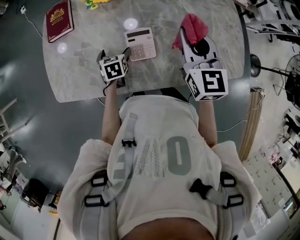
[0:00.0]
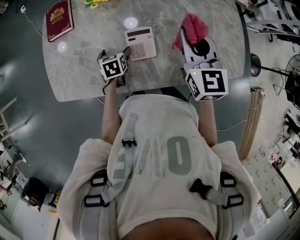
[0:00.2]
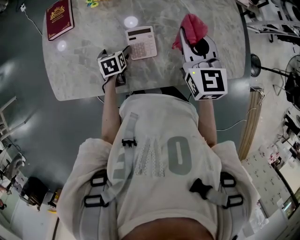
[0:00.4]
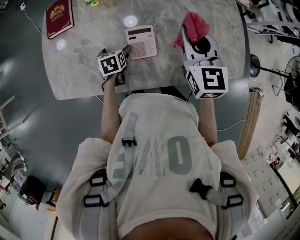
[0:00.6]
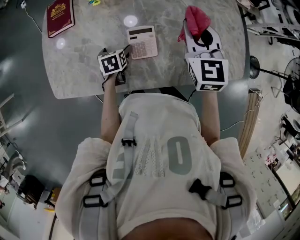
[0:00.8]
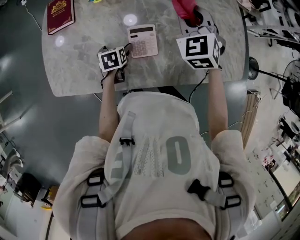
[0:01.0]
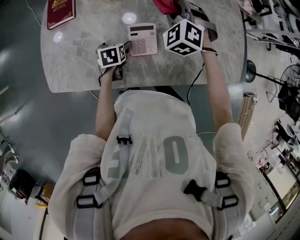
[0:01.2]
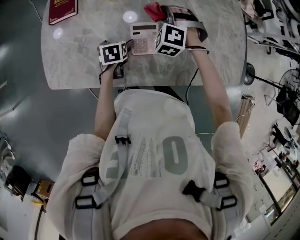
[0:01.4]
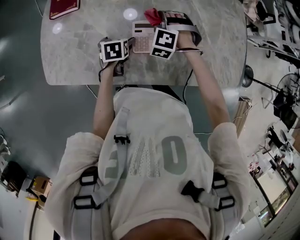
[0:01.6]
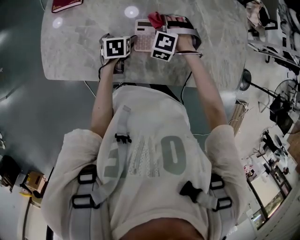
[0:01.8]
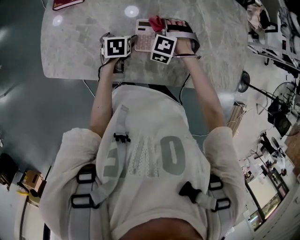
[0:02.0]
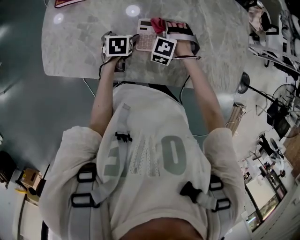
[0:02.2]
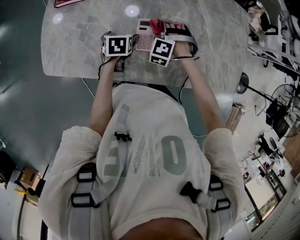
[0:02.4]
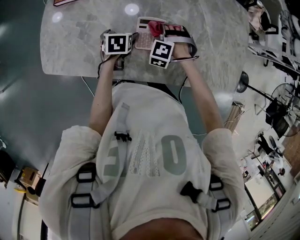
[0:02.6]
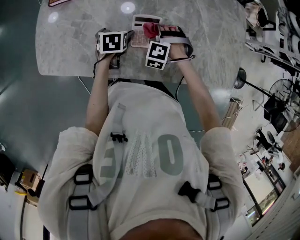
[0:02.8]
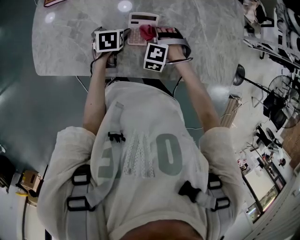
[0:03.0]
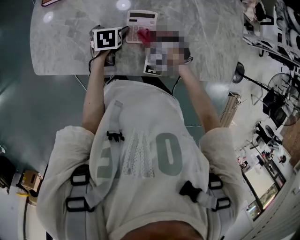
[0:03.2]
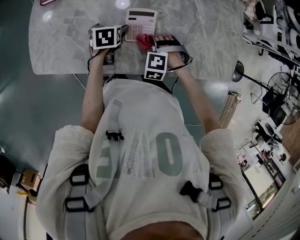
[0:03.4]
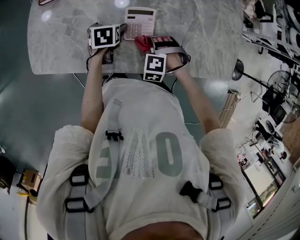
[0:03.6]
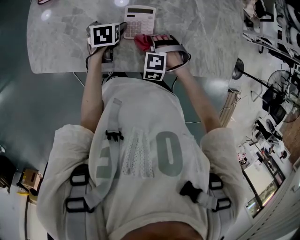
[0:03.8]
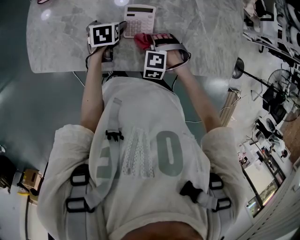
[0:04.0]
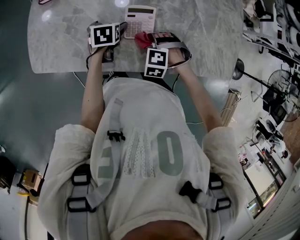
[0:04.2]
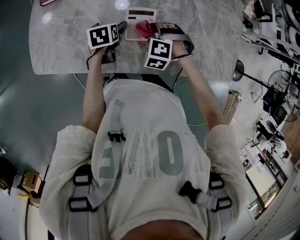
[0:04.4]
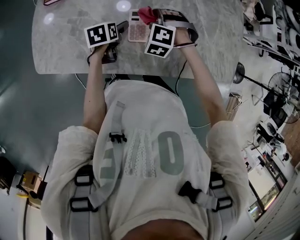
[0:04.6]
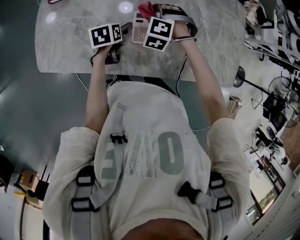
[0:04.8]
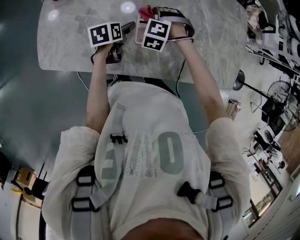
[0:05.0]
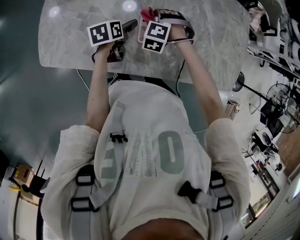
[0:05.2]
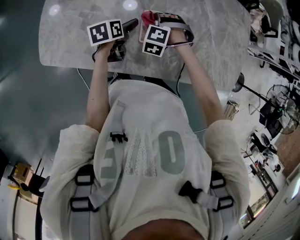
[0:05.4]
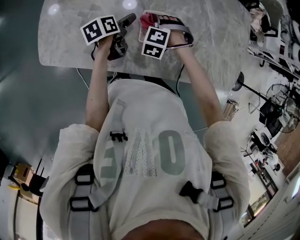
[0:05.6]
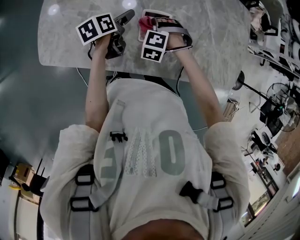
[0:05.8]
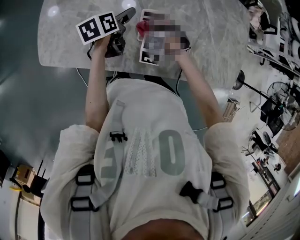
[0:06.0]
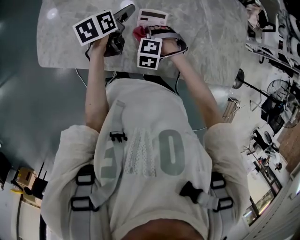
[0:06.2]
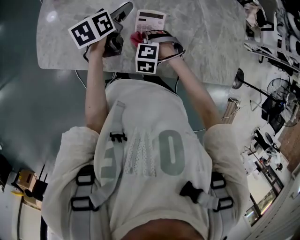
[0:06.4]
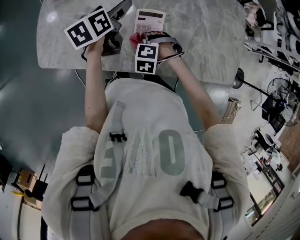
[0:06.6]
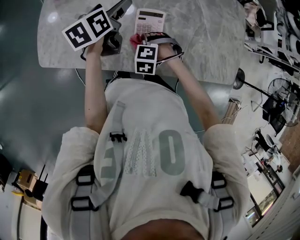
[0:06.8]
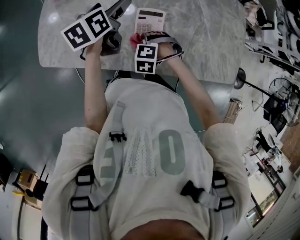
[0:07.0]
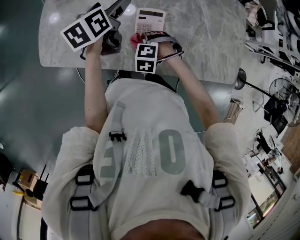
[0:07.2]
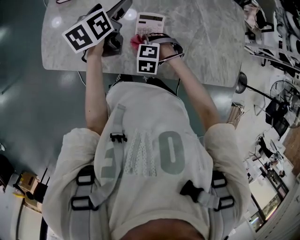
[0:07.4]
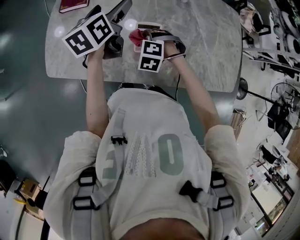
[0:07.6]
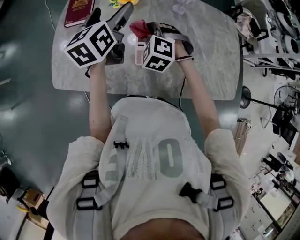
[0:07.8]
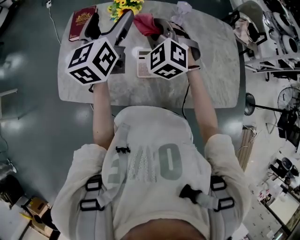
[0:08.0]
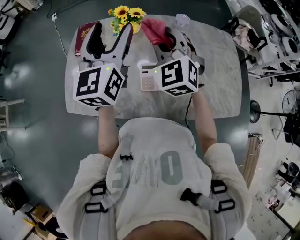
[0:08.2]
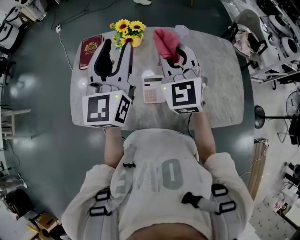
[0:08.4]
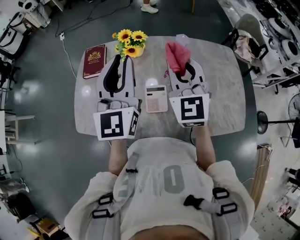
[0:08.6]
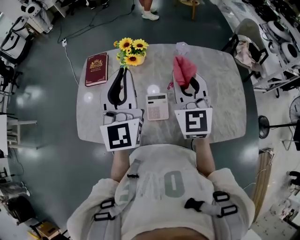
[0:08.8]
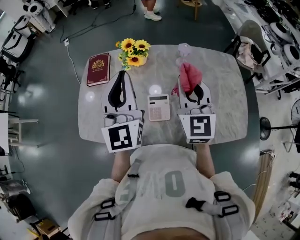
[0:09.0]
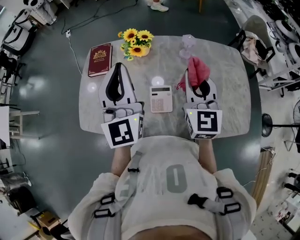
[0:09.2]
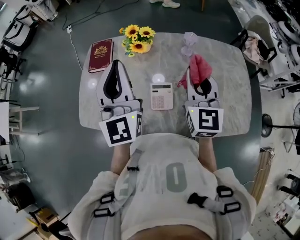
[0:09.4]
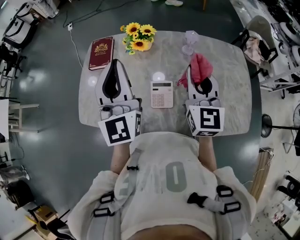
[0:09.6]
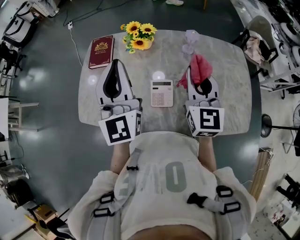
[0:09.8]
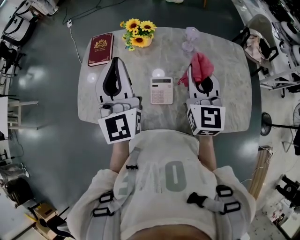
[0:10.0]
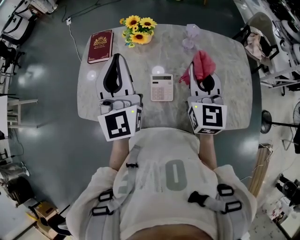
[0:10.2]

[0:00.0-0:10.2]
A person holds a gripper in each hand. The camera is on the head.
0.0 to 1.4 s: The right gripper shifts approximately 20 cm downward, to the left and forward, and rolls counterclockwise, seen from behind, by roughly 70 degrees.
1.4 to 3.0 s: The right gripper goes about 15 cm downward and backward.
3.0 to 4.4 s: The right gripper moves about 10 cm backward and comes back.
4.4 to 5.8 s: The right gripper goes approximately 5 cm to the left, while the left gripper shifts by roughly 5 cm, and changes its angle by roughly 30 degrees.
5.8 to 7.2 s: The right gripper changes place by about 10 cm; the left gripper goes some 15 cm upward, and swivels about 20 degrees.
7.2 to 8.8 s: The left gripper moves upward, about 25 cm, tips its fingers upward by some 40 degrees, and closes up; the right gripper moves upward, some 40 cm, and tilts its fingers approximately 70 degrees upward.
8.8 to 10.2 s: The right gripper shifts by roughly 5 cm.

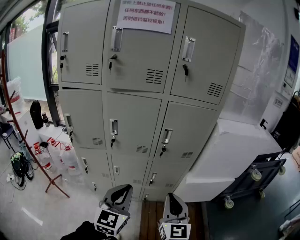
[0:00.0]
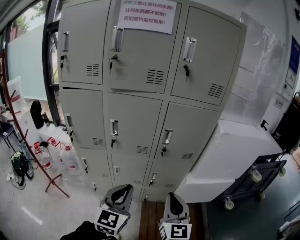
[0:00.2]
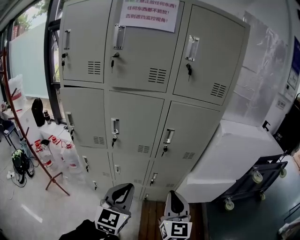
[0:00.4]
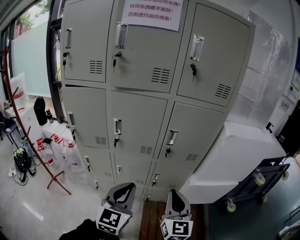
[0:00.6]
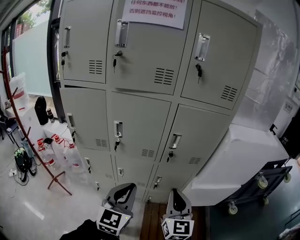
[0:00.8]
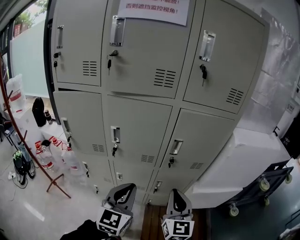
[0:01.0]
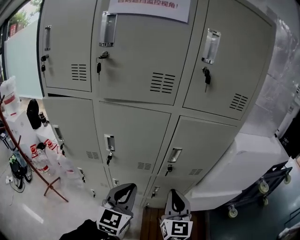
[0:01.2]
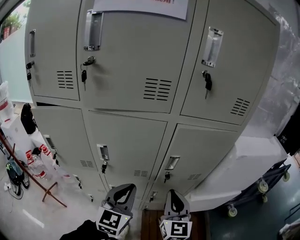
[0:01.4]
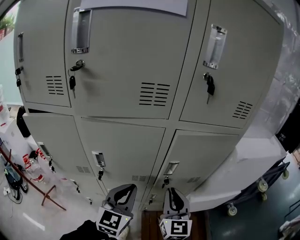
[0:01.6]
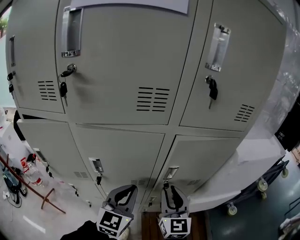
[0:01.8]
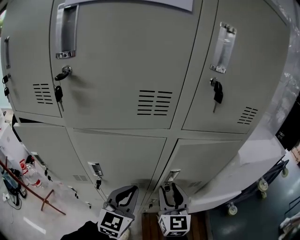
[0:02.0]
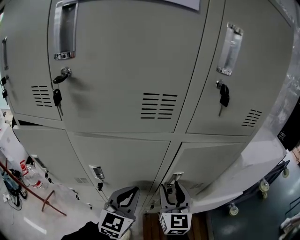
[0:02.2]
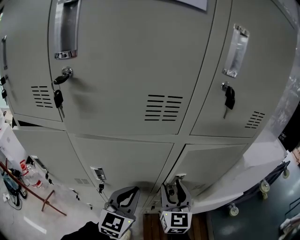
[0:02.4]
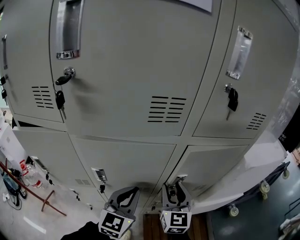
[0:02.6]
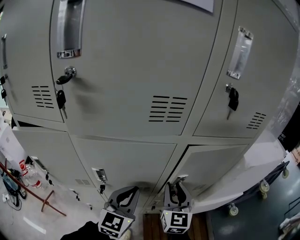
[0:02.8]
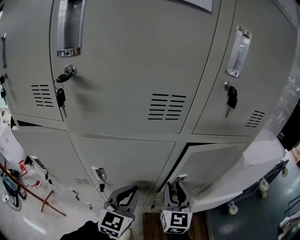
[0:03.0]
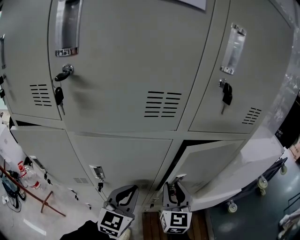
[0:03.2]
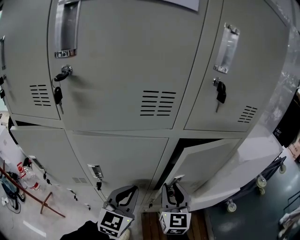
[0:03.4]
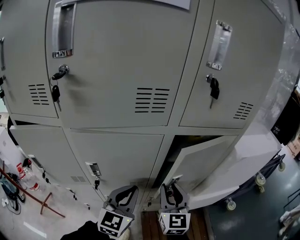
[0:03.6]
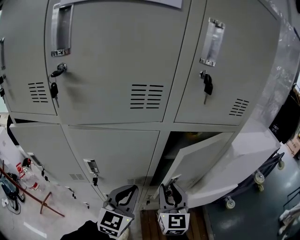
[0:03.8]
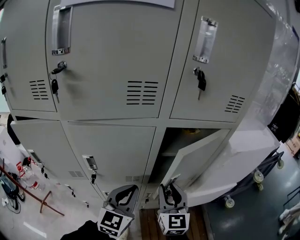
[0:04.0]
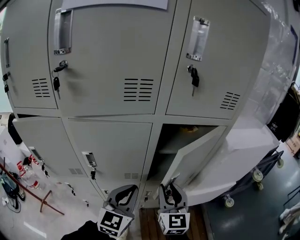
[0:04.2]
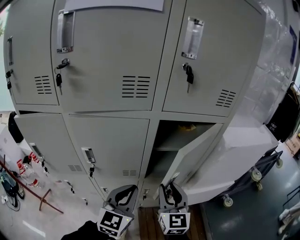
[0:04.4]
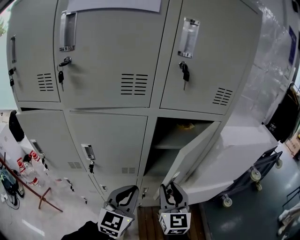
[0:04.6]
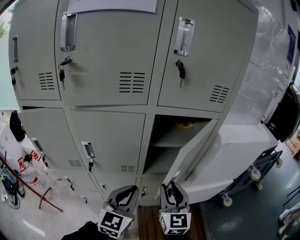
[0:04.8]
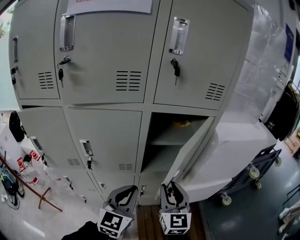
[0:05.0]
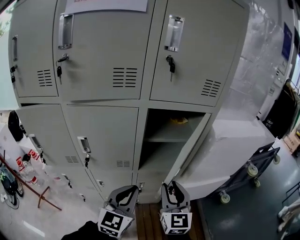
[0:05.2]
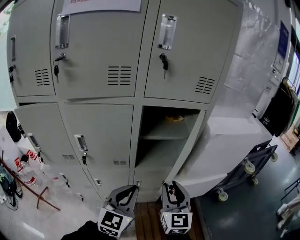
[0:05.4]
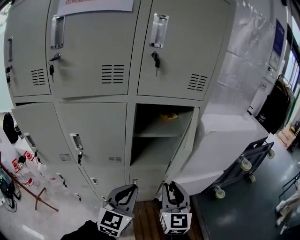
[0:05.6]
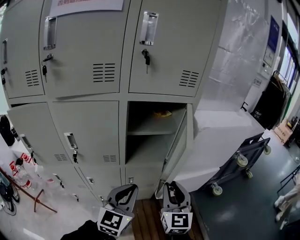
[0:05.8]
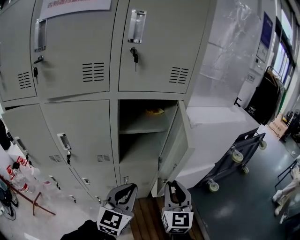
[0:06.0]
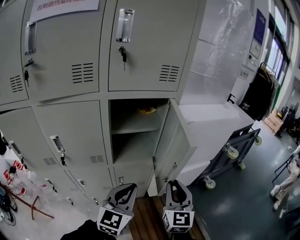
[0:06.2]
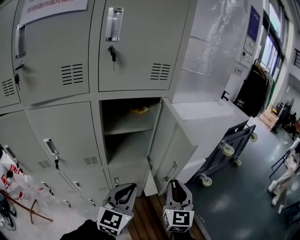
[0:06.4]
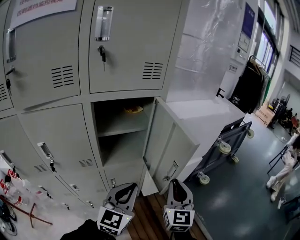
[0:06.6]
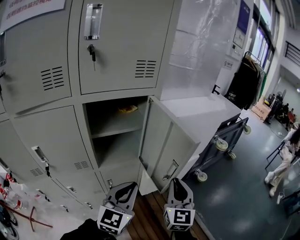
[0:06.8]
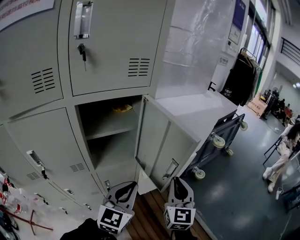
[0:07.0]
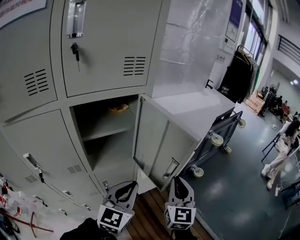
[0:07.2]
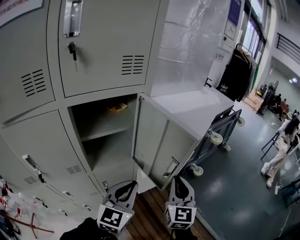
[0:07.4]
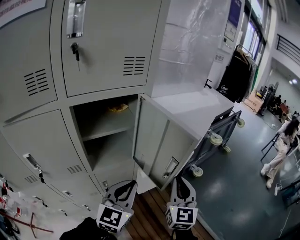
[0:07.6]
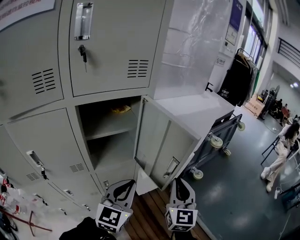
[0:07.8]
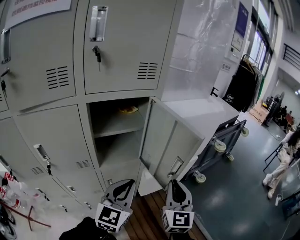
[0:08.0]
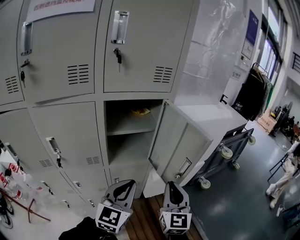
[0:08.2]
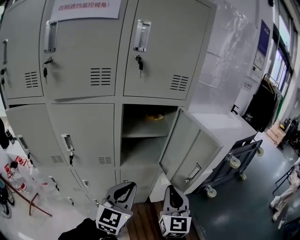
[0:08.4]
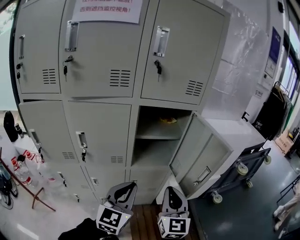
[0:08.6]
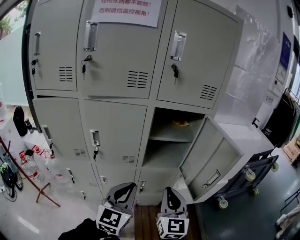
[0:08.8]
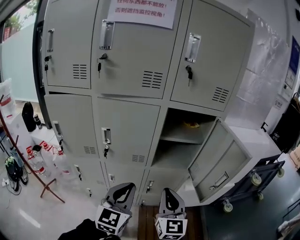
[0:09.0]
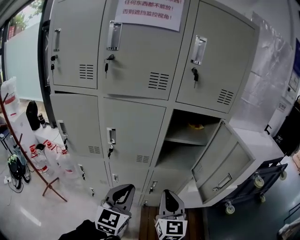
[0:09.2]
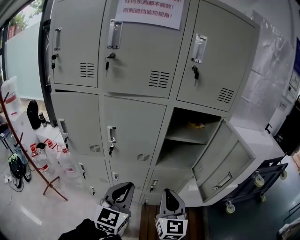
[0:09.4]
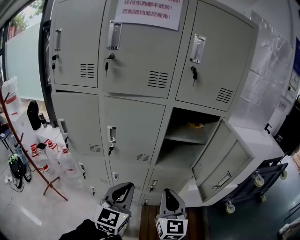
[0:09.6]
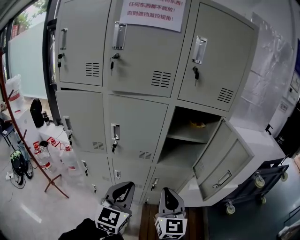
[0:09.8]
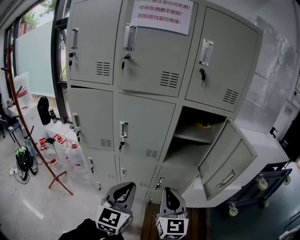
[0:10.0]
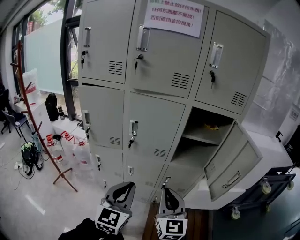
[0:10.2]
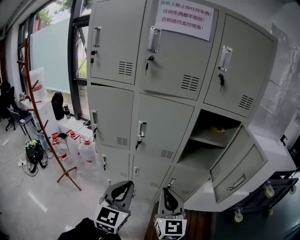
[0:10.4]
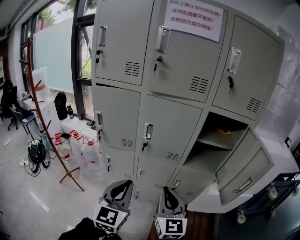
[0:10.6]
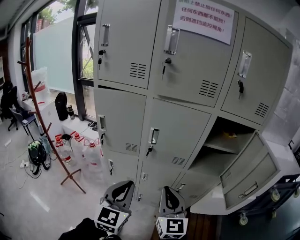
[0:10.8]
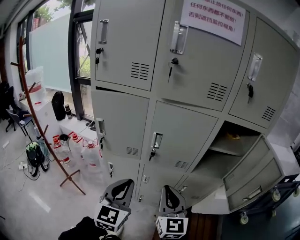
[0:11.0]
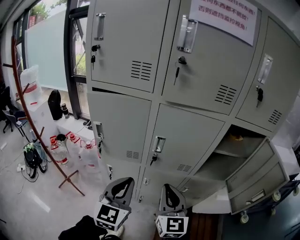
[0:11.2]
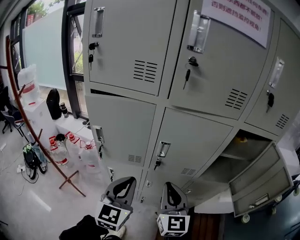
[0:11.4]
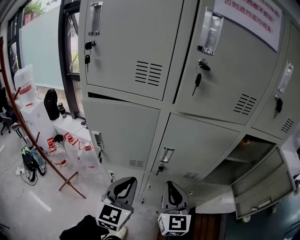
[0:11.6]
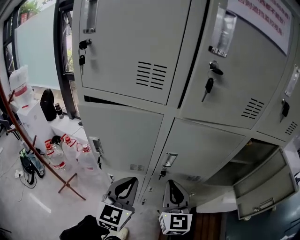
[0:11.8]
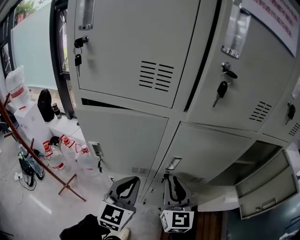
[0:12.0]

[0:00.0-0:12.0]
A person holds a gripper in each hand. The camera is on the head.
0.0 to 1.6 s: Both grippers move forward, approximately 25 cm.
1.6 to 3.0 s: The two grippers go roughly 5 cm forward.
3.0 to 4.4 s: The left gripper travels to the right by approximately 5 cm. The right gripper heads backward, covering approximately 5 cm.
4.4 to 6.0 s: The two grippers go roughly 20 cm to the right and backward.
6.0 to 7.6 s: The left gripper moves forward and to the right, roughly 10 cm. Meanwhile the right gripper shifts some 10 cm to the right and forward, and changes its angle by approximately 20 degrees.
7.6 to 9.0 s: The left gripper changes place by approximately 25 cm, and rotates approximately 30 degrees. Meanwhile the right gripper moves some 25 cm, and swivels roughly 40 degrees.
9.0 to 10.4 s: The two grippers go roughly 15 cm to the left and backward.
10.4 to 12.0 s: The two grippers go some 30 cm forward and to the left.

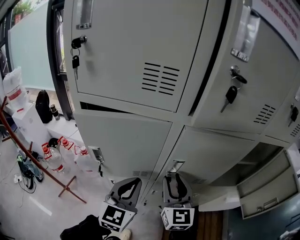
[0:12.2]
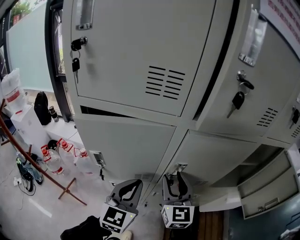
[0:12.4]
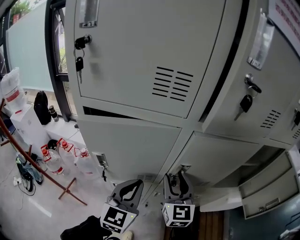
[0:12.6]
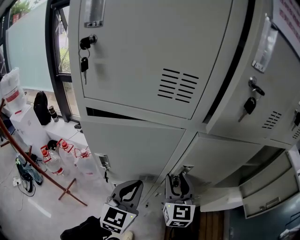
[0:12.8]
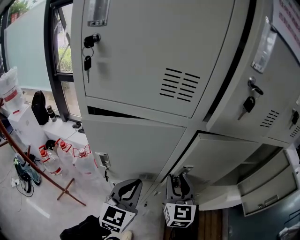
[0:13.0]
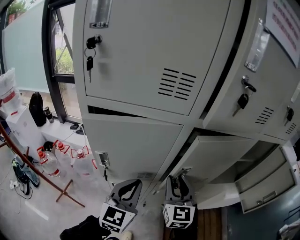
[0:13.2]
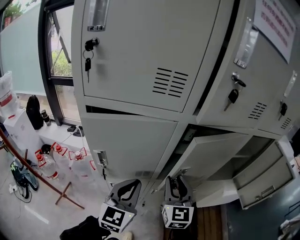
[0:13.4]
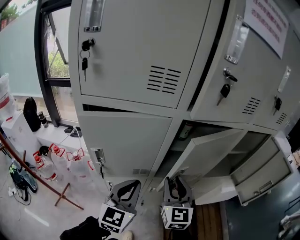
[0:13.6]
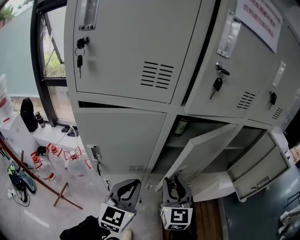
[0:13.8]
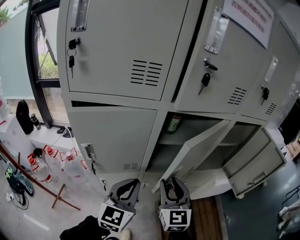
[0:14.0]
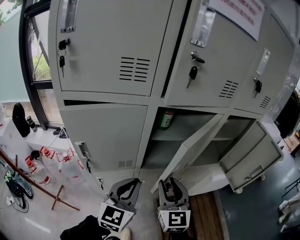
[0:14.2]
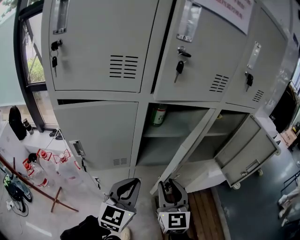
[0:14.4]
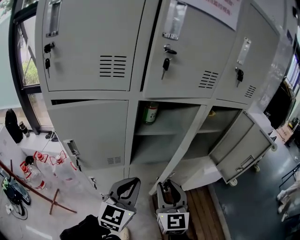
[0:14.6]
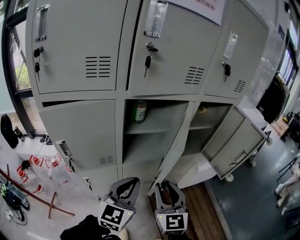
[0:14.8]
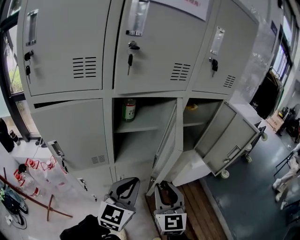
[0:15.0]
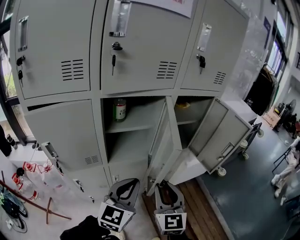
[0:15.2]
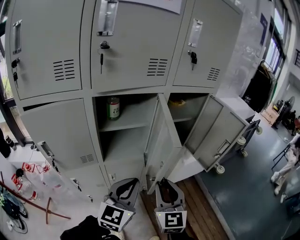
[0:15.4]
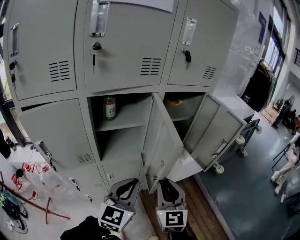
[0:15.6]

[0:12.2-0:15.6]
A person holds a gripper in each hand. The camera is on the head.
12.2 to 13.8 s: The right gripper goes about 5 cm backward.
13.8 to 15.6 s: The two grippers go approximately 25 cm to the right.
